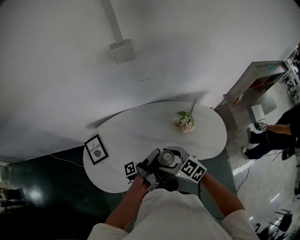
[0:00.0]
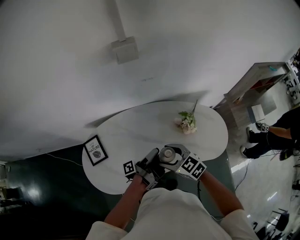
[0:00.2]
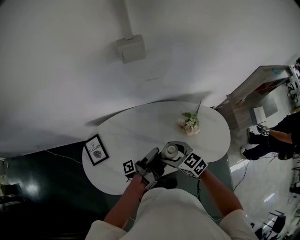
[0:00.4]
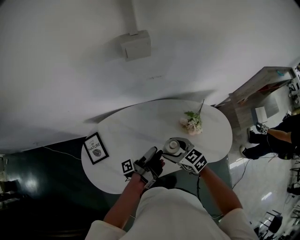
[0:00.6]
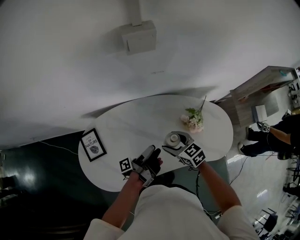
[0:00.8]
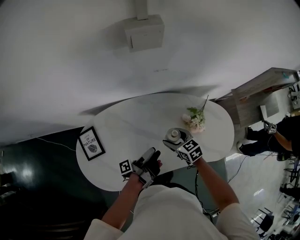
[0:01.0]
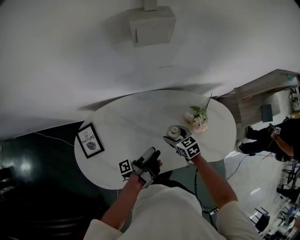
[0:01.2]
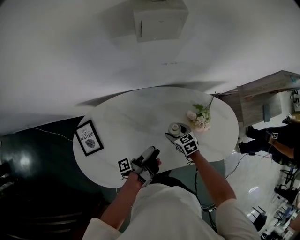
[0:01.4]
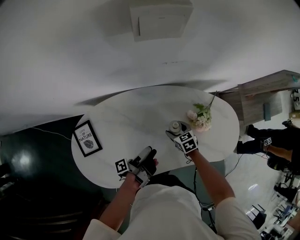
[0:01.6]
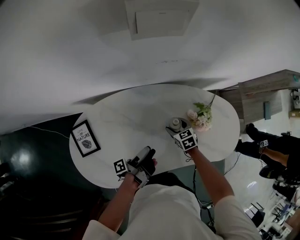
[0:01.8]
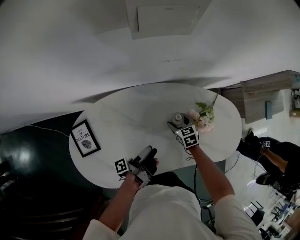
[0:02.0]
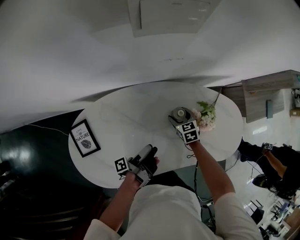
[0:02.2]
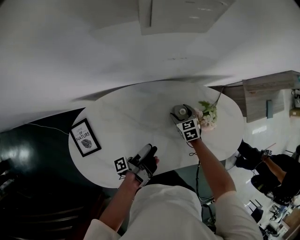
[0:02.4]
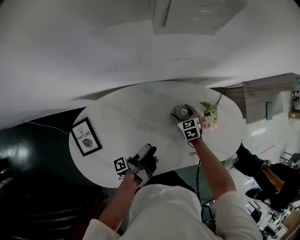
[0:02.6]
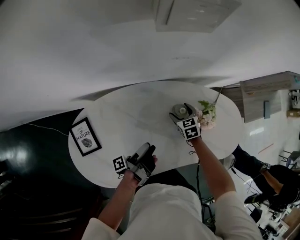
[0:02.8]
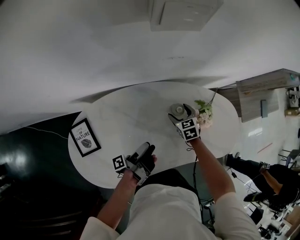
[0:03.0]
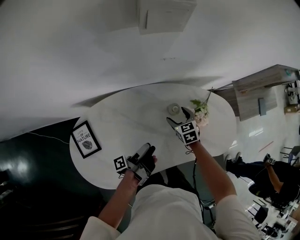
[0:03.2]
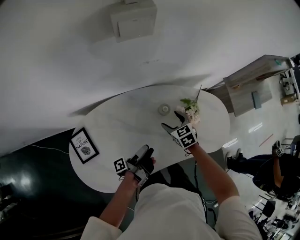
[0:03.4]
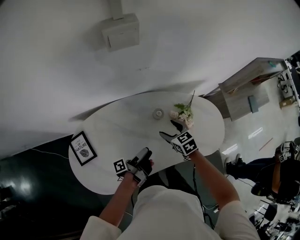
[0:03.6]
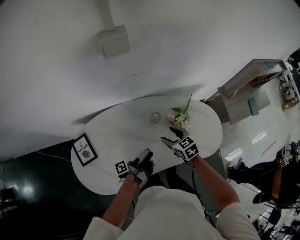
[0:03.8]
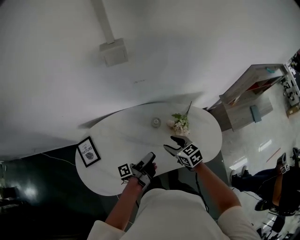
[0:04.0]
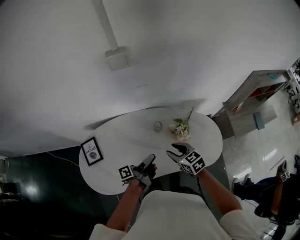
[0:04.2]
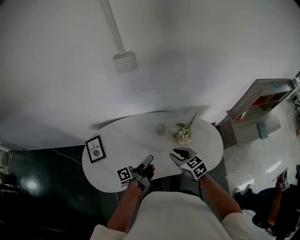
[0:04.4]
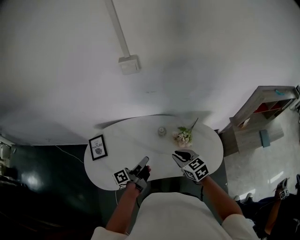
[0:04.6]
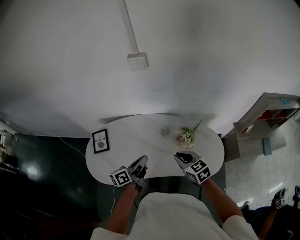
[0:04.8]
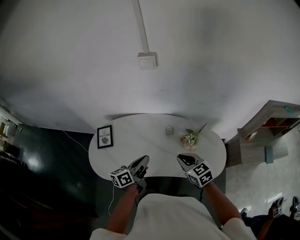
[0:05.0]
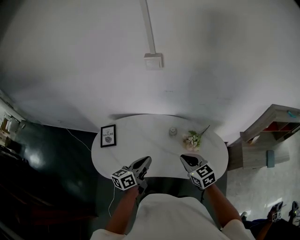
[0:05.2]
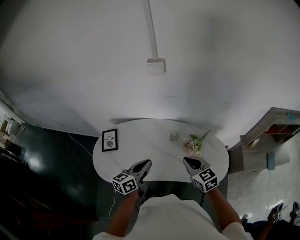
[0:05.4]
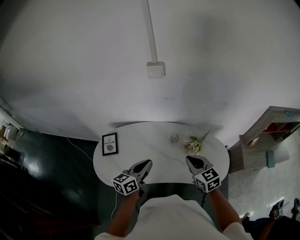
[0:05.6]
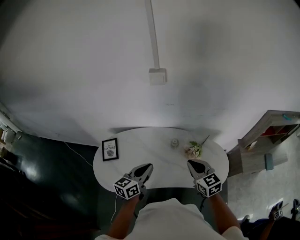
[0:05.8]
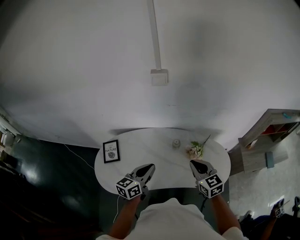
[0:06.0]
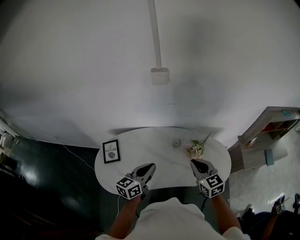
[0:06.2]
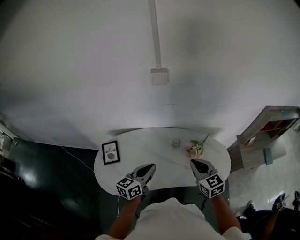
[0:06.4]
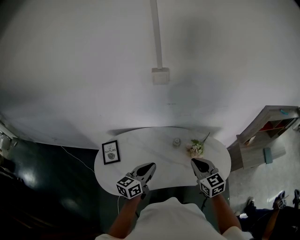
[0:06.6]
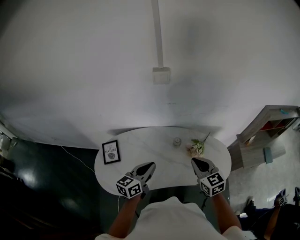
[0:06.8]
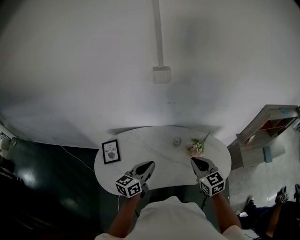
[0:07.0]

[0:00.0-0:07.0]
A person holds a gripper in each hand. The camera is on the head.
0.0 to 1.4 s: The right gripper travels downward by approximately 30 cm, and rotates roughly 30 degrees.
1.4 to 2.8 s: The right gripper shifts by some 10 cm.
2.8 to 4.2 s: The right gripper heads upward, covering roughly 25 cm, changes its angle by approximately 30 degrees, and closes up.
4.2 to 5.6 s: The right gripper goes some 15 cm upward, and closes.

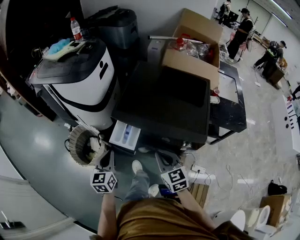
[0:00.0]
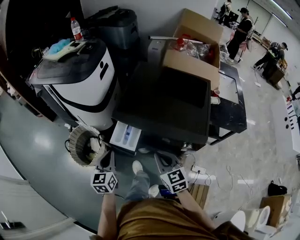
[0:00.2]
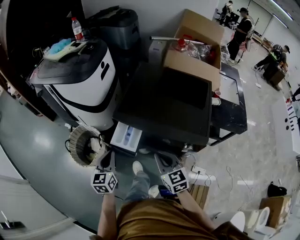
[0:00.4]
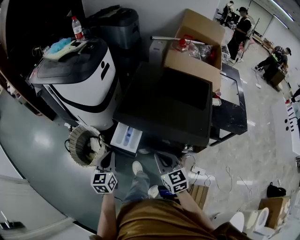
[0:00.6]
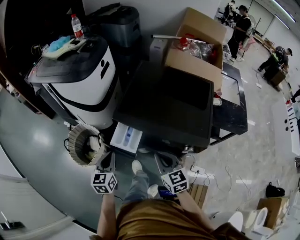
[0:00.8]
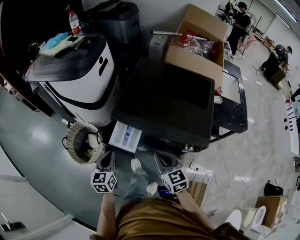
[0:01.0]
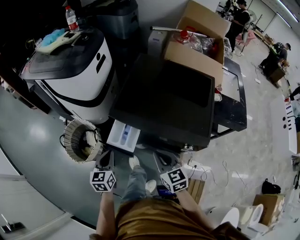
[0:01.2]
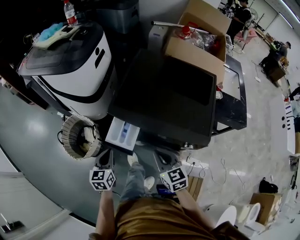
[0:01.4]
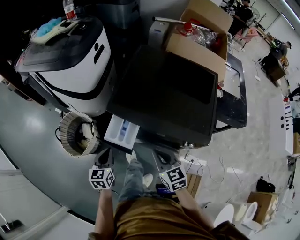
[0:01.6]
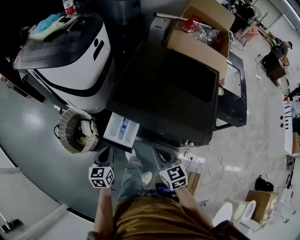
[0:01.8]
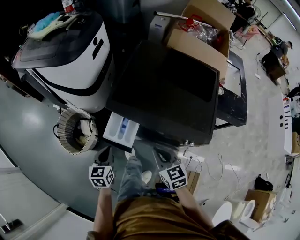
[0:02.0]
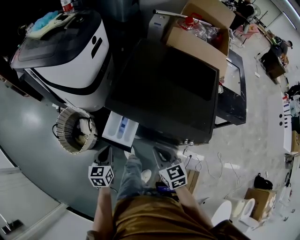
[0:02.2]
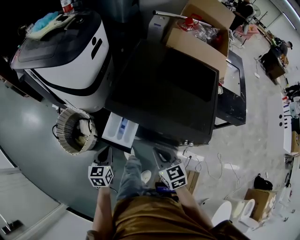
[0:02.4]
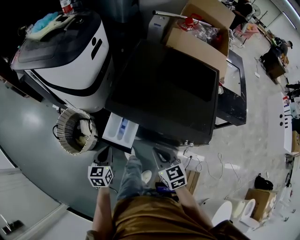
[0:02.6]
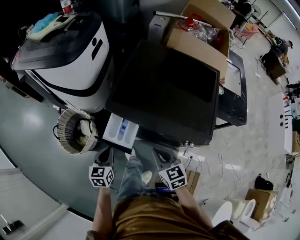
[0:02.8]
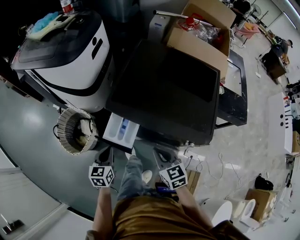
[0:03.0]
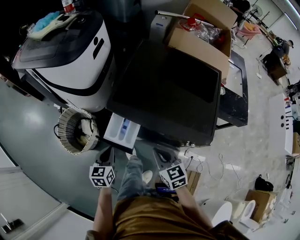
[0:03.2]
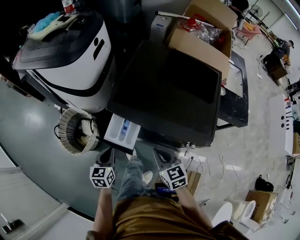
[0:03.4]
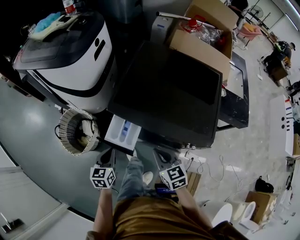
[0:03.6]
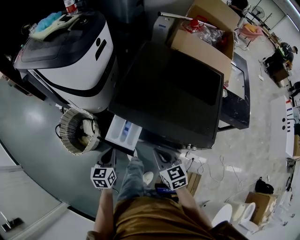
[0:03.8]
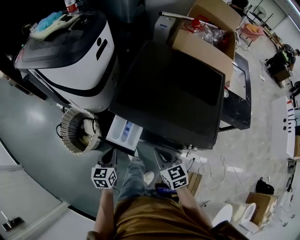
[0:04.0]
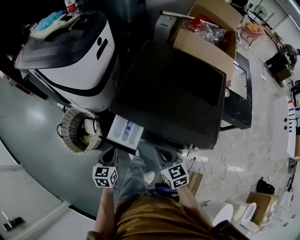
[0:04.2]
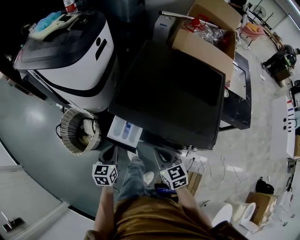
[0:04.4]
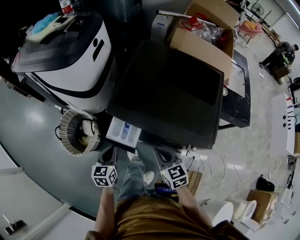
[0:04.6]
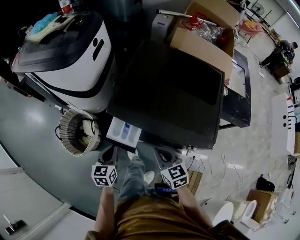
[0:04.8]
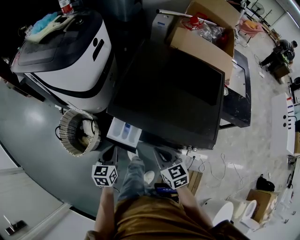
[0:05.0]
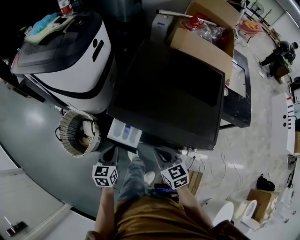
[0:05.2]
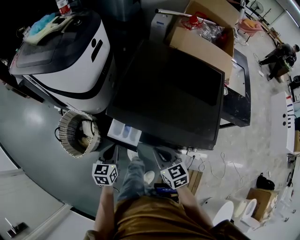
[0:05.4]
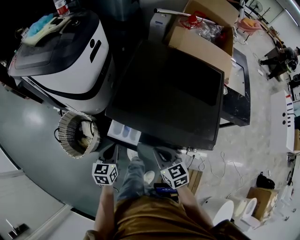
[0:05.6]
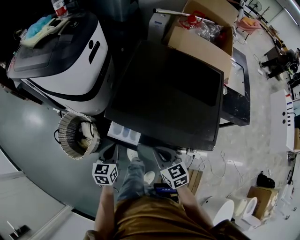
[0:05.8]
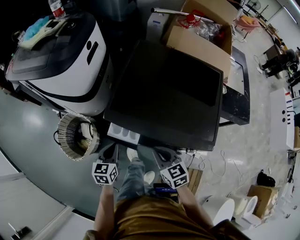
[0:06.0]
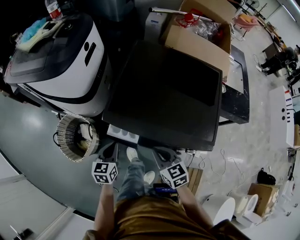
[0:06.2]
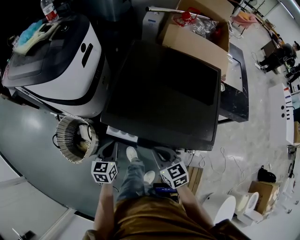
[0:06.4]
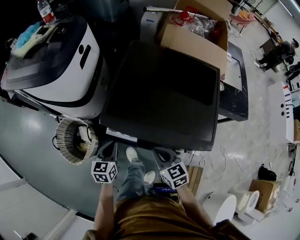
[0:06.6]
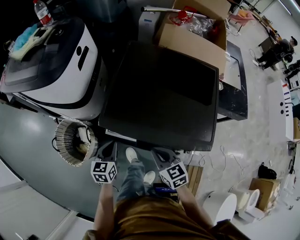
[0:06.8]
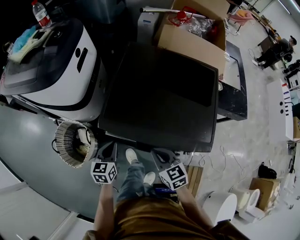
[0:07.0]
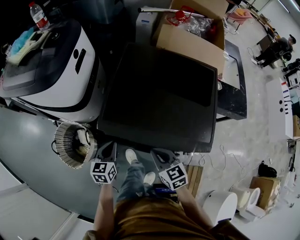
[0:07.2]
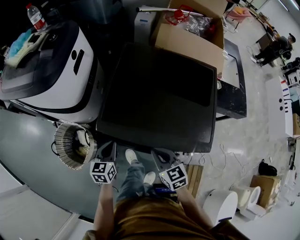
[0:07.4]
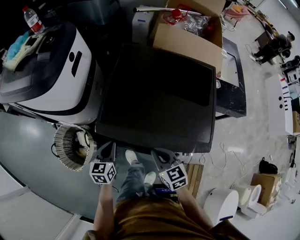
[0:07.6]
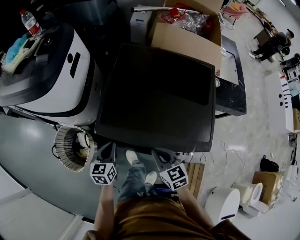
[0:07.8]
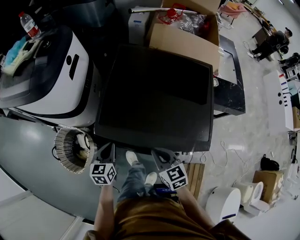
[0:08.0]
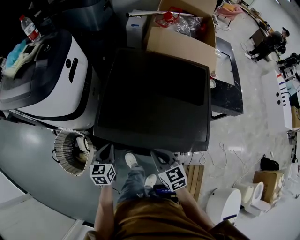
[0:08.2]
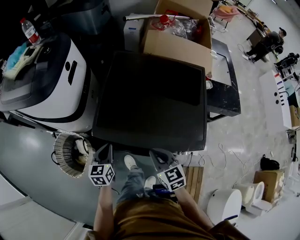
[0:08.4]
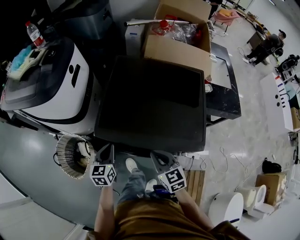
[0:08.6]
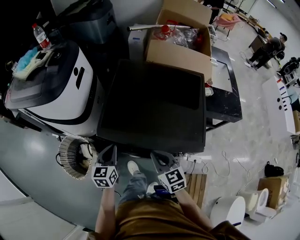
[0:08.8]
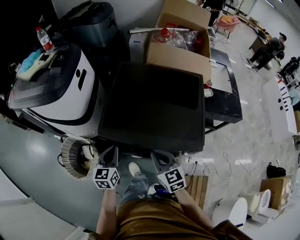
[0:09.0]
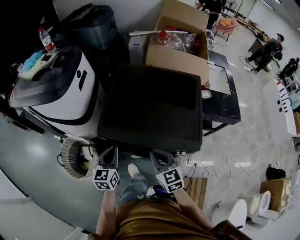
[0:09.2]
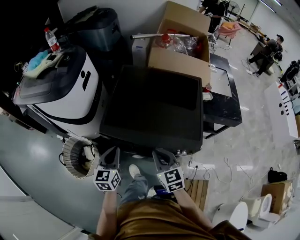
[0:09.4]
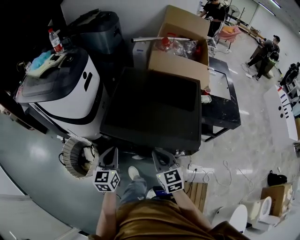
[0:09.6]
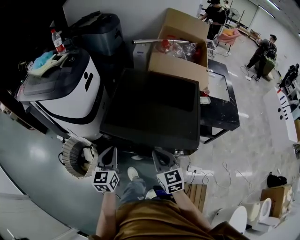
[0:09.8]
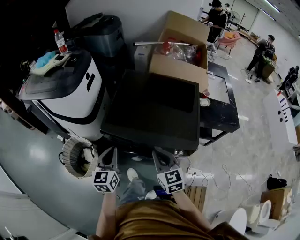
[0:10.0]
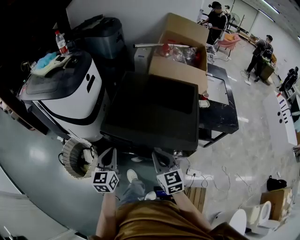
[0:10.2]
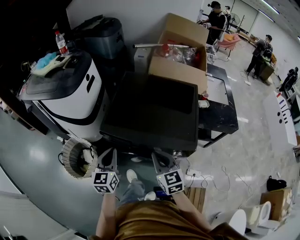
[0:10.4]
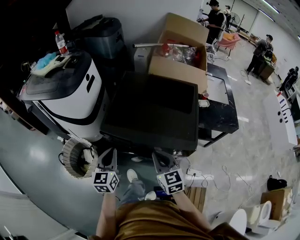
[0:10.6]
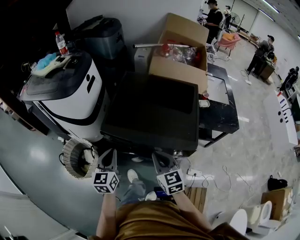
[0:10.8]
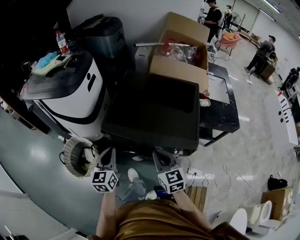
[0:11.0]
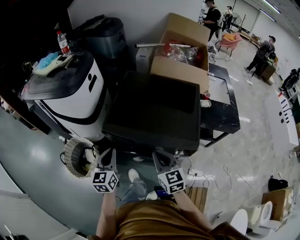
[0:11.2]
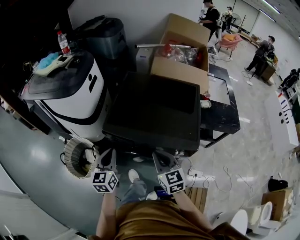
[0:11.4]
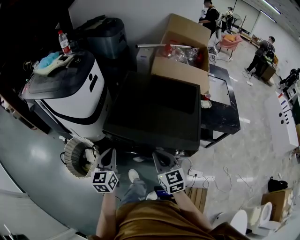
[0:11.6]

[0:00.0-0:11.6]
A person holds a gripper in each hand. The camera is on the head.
0.0 to 1.4 s: The right gripper moves some 5 cm; the left gripper heads downward, covering about 5 cm.
1.4 to 4.4 s: There are only small adjustments of the grippers.
4.4 to 5.8 s: There are only small adjustments of the grippers.
5.8 to 7.2 s: The left gripper shifts roughly 5 cm forward.
7.2 to 8.8 s: Both grippers move upward, some 5 cm.
8.8 to 10.2 s: The right gripper travels backward and upward by approximately 10 cm, while the left gripper shifts approximately 15 cm upward and backward.
10.2 to 11.6 s: The grippers make only small movements.

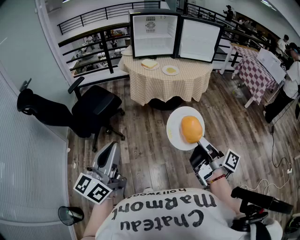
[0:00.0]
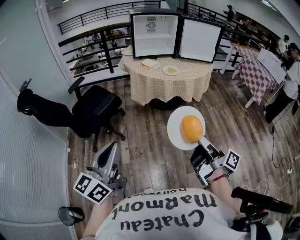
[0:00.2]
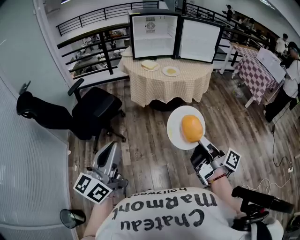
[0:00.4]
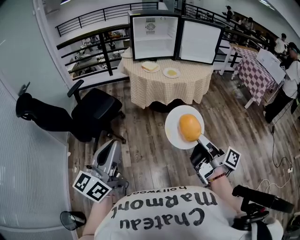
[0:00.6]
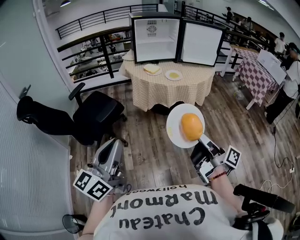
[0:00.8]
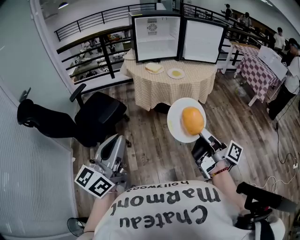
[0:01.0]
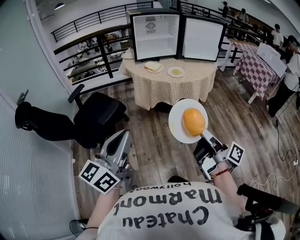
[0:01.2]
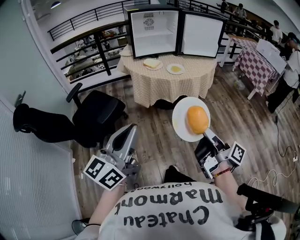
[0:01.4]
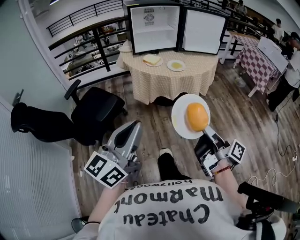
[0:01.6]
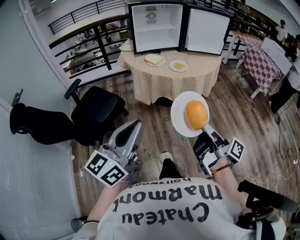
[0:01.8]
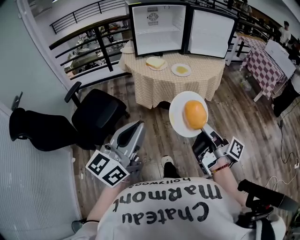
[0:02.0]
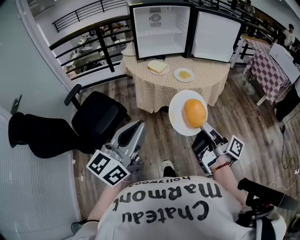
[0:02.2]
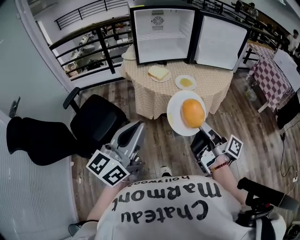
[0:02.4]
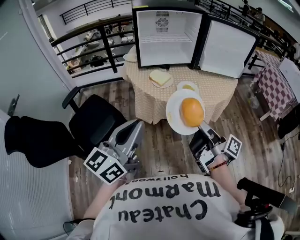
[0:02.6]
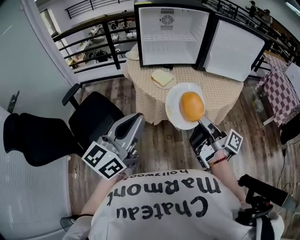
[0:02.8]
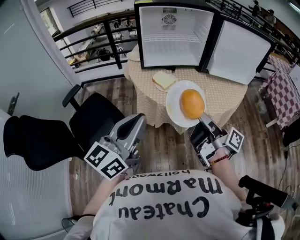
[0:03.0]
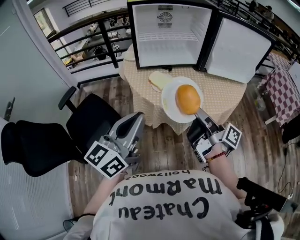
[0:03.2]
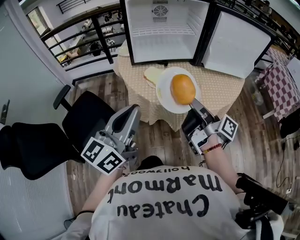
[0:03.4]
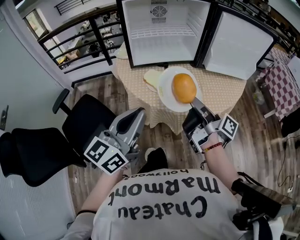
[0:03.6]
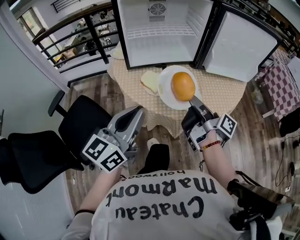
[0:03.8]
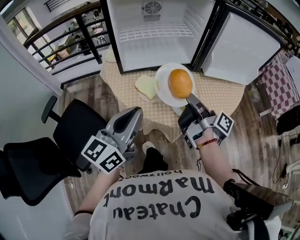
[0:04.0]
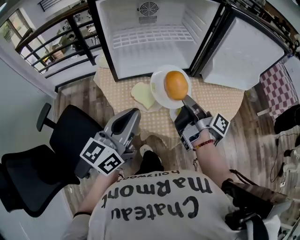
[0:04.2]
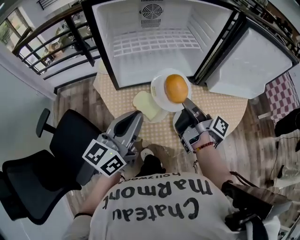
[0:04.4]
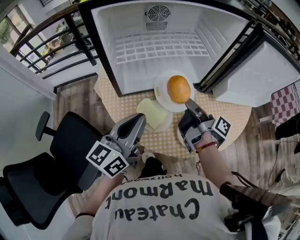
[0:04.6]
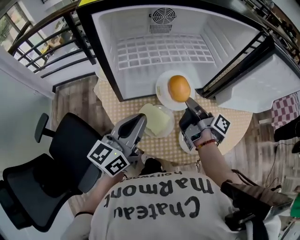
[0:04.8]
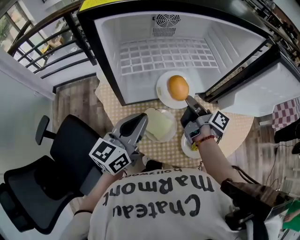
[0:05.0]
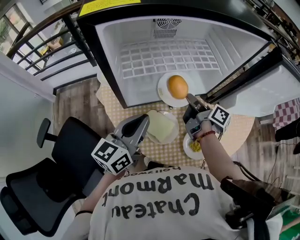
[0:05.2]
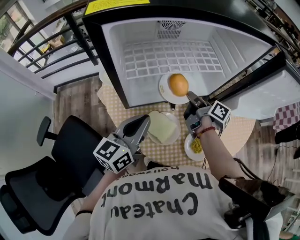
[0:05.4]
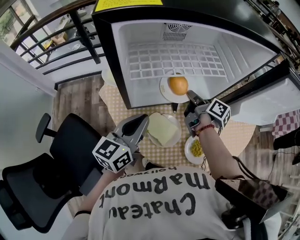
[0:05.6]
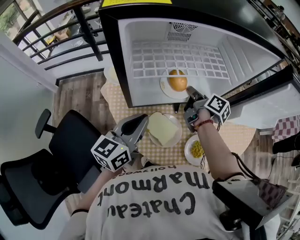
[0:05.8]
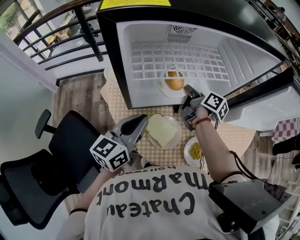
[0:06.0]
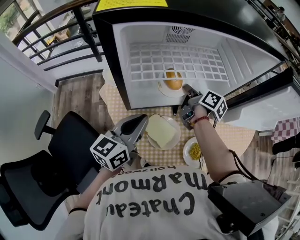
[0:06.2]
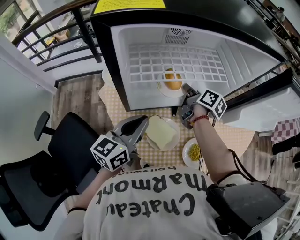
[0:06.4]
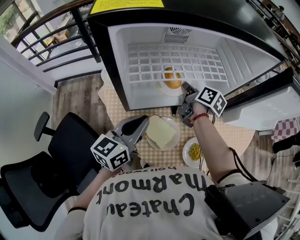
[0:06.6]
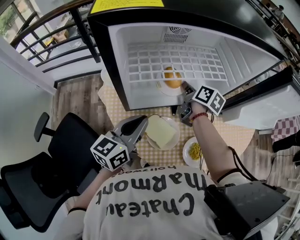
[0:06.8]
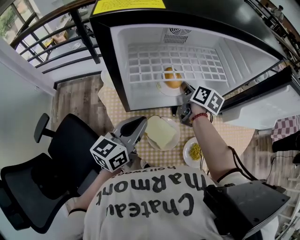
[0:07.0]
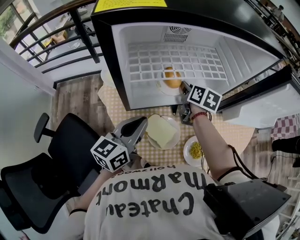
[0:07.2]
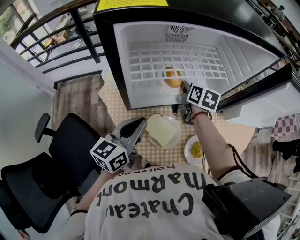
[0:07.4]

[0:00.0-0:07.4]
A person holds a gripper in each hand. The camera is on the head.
0.0 to 1.4 s: The grippers both shift forward by some 10 cm.
1.4 to 3.0 s: Both grippers travel together forward, some 40 cm.
3.0 to 4.4 s: Both grippers move forward, roughly 30 cm.
4.4 to 6.0 s: The right gripper travels forward by roughly 20 cm, and turns by approximately 30 degrees. The left gripper shifts approximately 15 cm forward, downward and to the left.
6.0 to 7.4 s: The right gripper turns by about 40 degrees, and opens.
